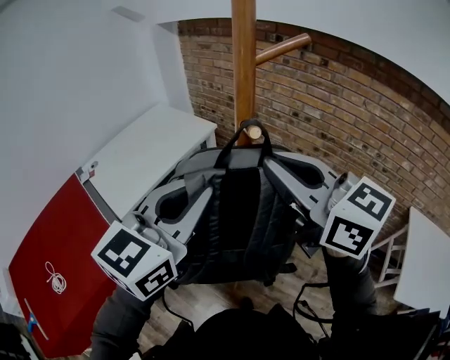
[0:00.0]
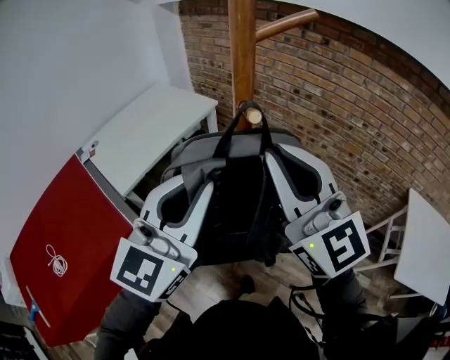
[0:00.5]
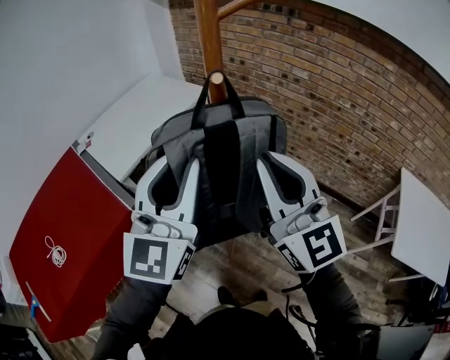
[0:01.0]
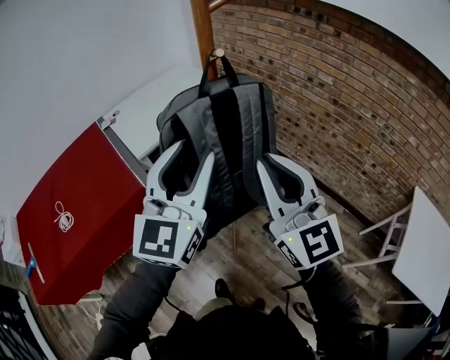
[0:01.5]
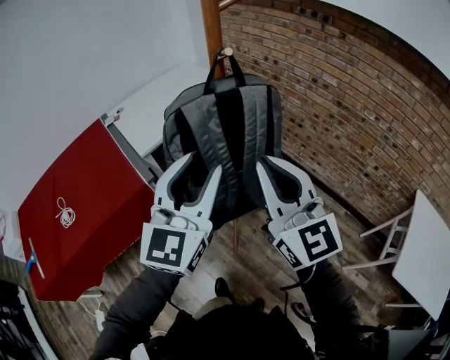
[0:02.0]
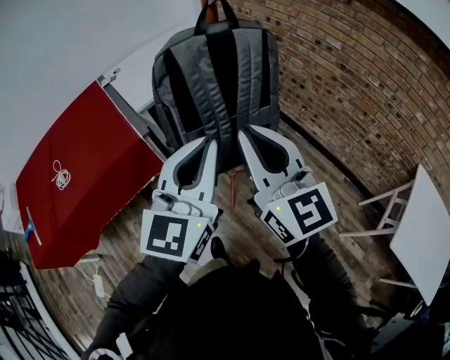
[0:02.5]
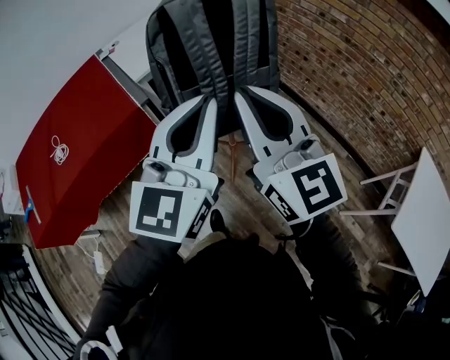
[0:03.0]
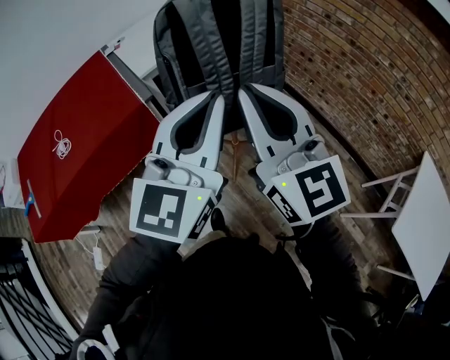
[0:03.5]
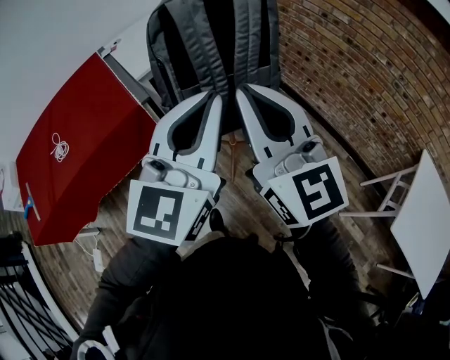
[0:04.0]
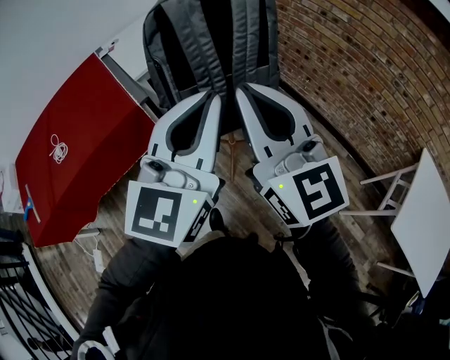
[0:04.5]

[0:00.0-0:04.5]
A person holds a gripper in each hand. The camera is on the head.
0:00.0 to 0:02.0: The left gripper shifts about 15 cm backward, changes its angle by roughly 30 degrees, and opens up. Meanwhile the right gripper moves backward and downward, some 20 cm.
0:02.0 to 0:04.5: Both grippers move backward, some 10 cm. The left gripper closes up.

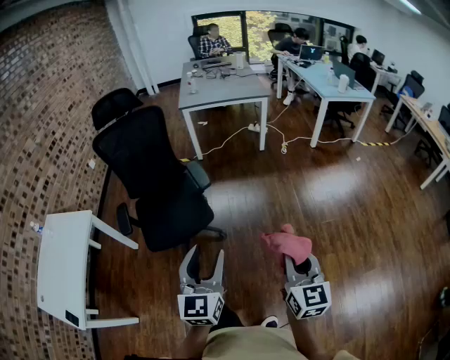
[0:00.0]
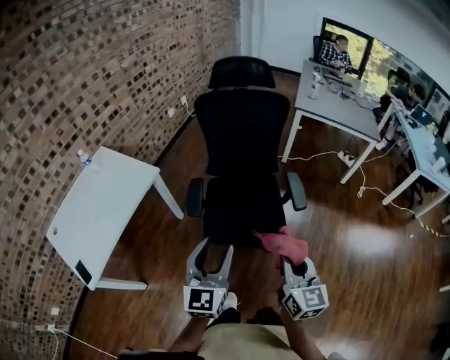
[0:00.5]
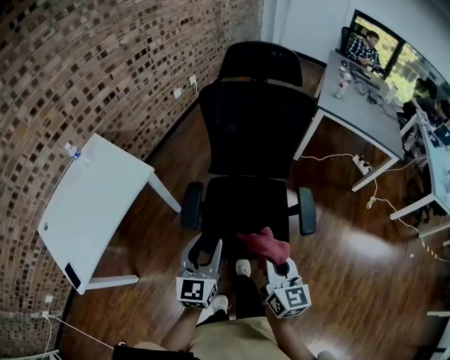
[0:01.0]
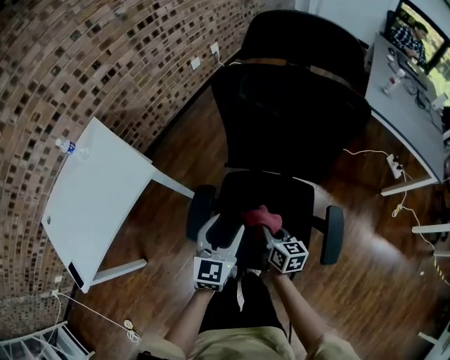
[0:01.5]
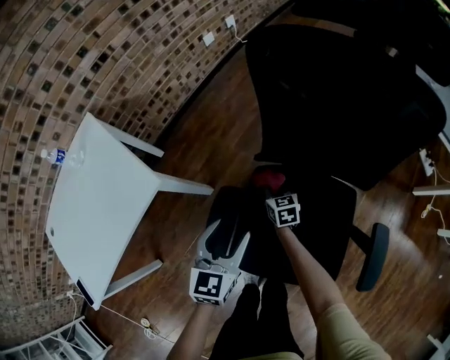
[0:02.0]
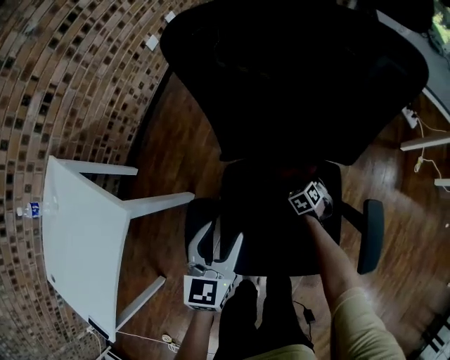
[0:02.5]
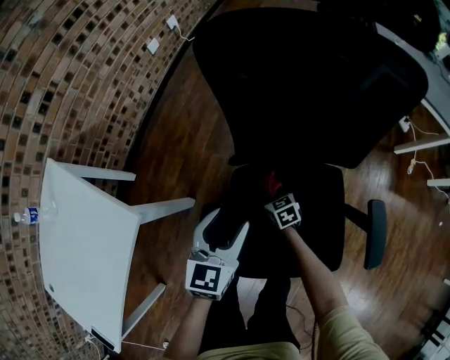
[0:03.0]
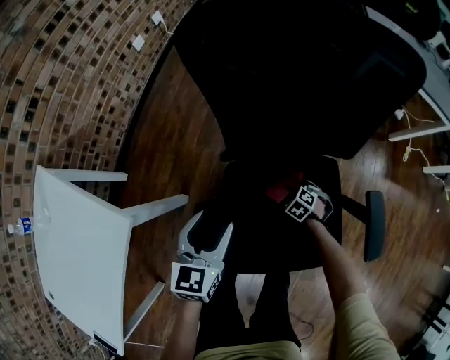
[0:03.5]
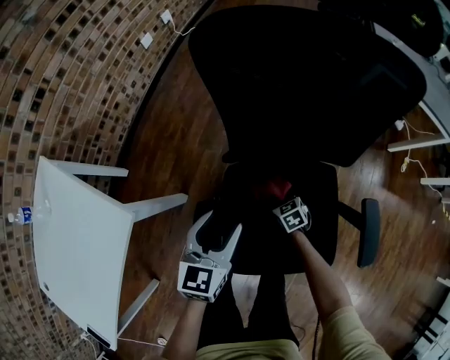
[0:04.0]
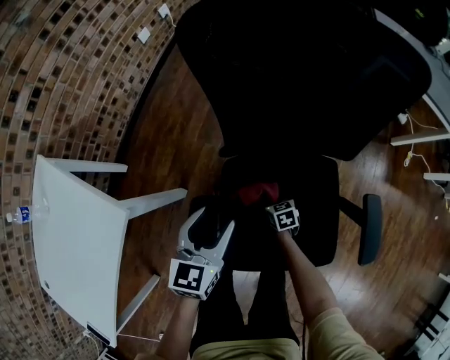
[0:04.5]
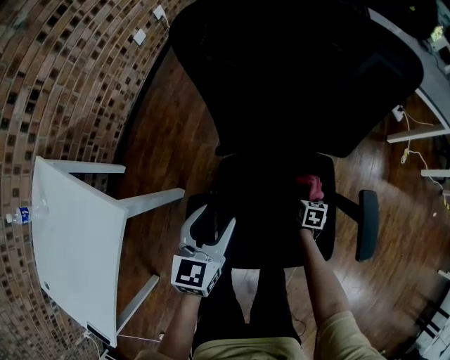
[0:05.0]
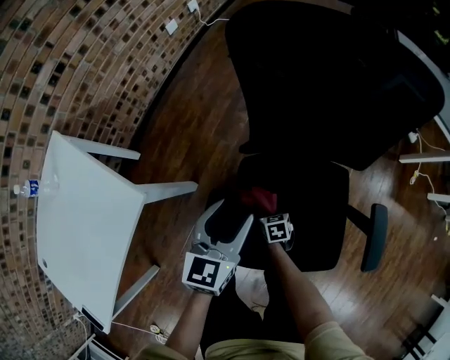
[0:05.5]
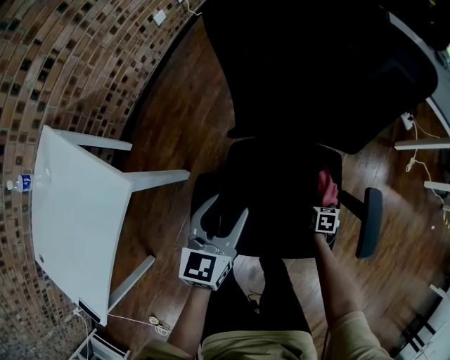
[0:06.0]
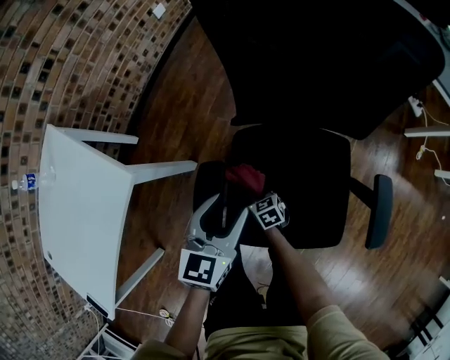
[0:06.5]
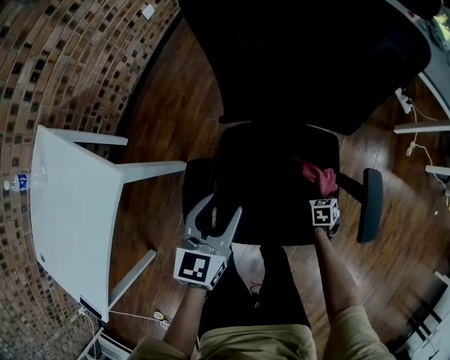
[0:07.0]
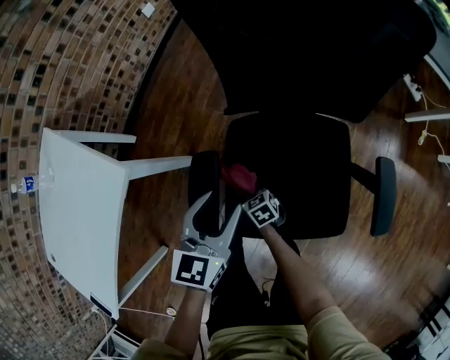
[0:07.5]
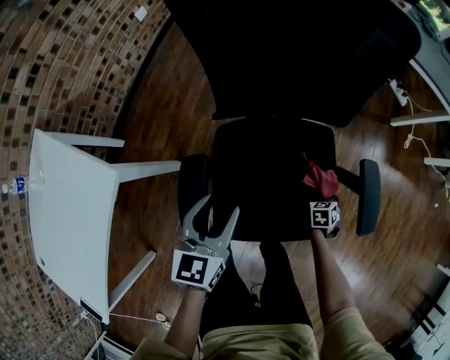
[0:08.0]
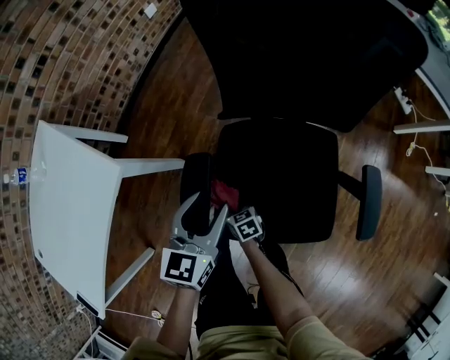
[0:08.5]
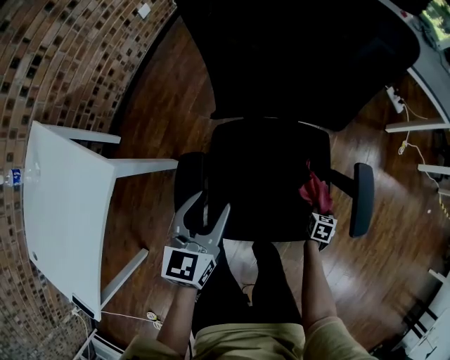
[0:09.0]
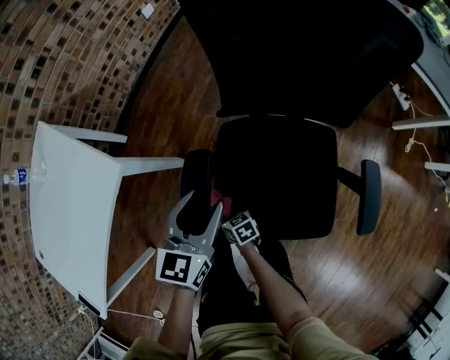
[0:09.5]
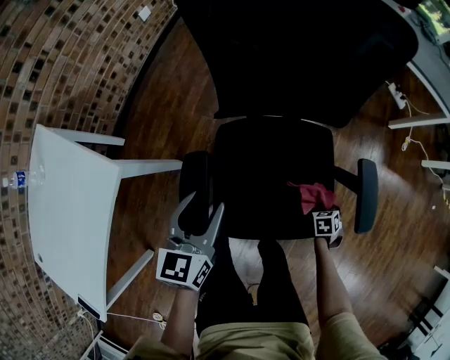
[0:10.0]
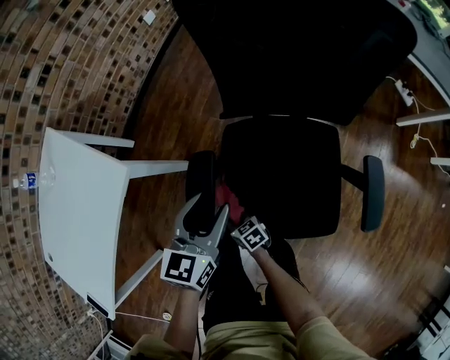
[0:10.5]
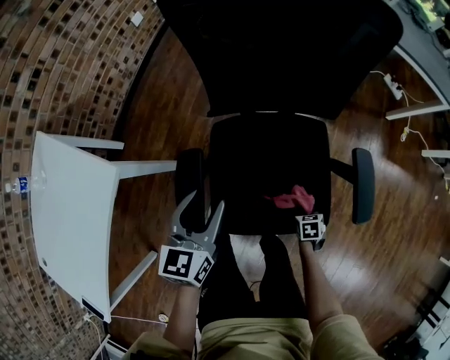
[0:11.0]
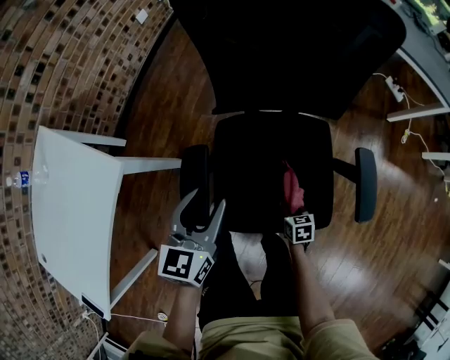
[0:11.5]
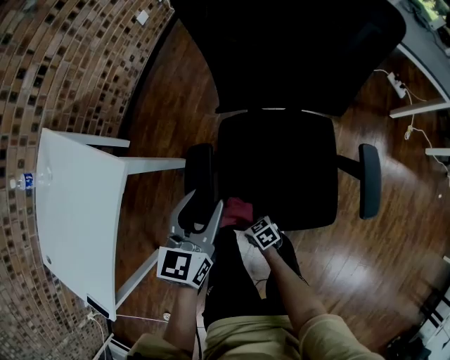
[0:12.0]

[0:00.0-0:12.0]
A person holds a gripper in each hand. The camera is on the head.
0:00.0 to 0:02.0: Both grippers are carried about 80 cm. The left gripper changes its angle by approximately 30 degrees. Meanwhile the right gripper tilts its fingers roughly 30 degrees downward.
0:02.0 to 0:04.0: The left gripper moves approximately 5 cm; the right gripper goes up and down, about 15 cm each way, reversing 3 times.
0:04.0 to 0:06.0: The right gripper shifts by some 20 cm, and rotates approximately 30 degrees.
0:06.0 to 0:08.0: The left gripper moves some 5 cm.
0:10.0 to 0:12.0: The right gripper changes place by some 35 cm, and turns by roughly 50 degrees.

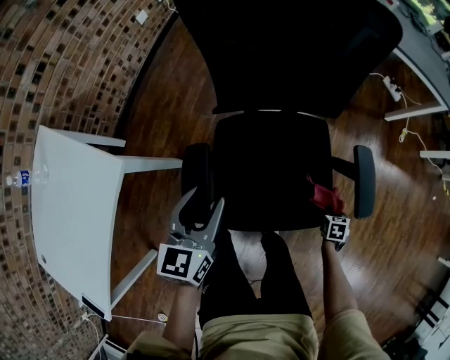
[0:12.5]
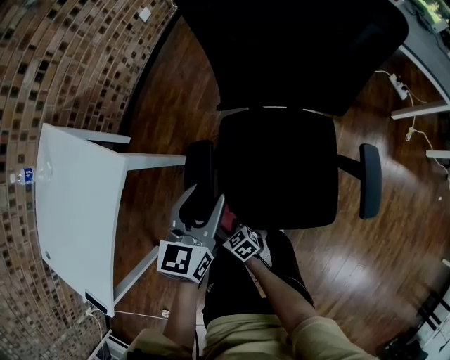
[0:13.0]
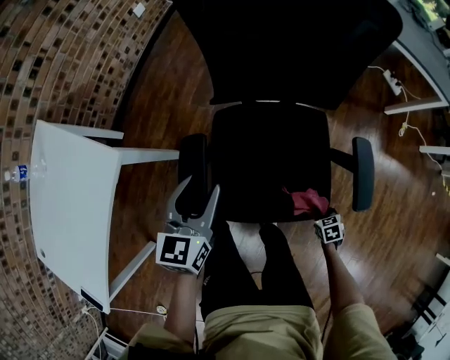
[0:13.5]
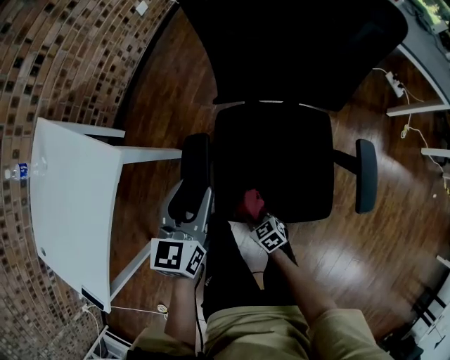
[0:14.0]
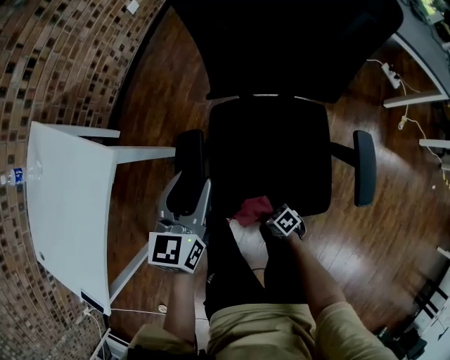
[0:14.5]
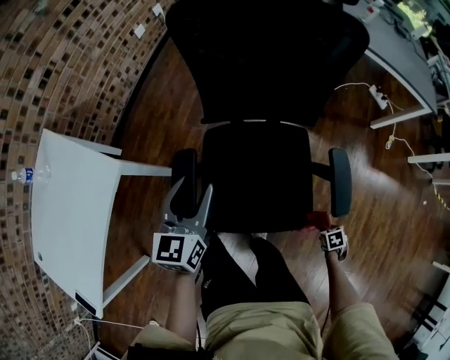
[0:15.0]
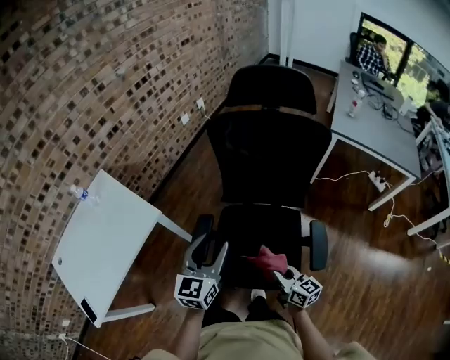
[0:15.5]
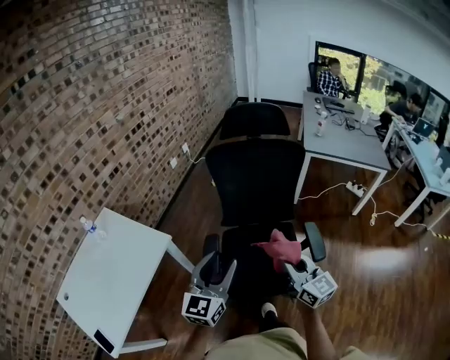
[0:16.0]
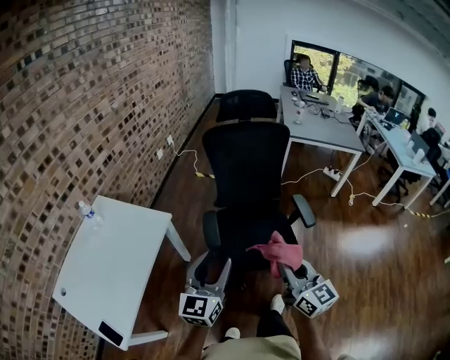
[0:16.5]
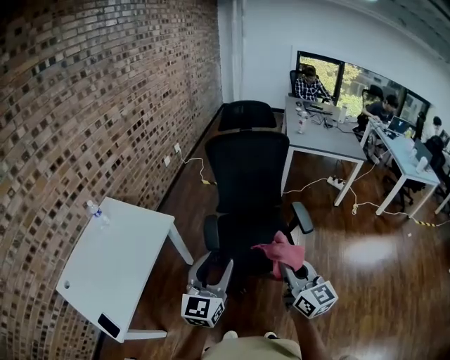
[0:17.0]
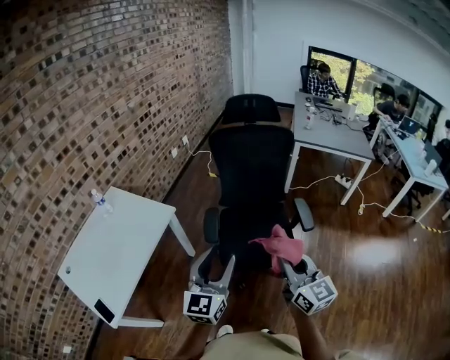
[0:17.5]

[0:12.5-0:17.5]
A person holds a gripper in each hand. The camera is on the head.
0:12.5 to 0:15.0: The right gripper turns by some 20 degrees.
0:15.0 to 0:17.5: The left gripper shifts by roughly 40 cm, and changes its angle by about 30 degrees. Meanwhile the right gripper travels upward by roughly 60 cm, and points its fingers roughly 90 degrees further upward.

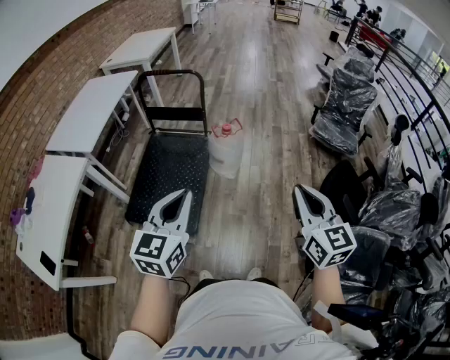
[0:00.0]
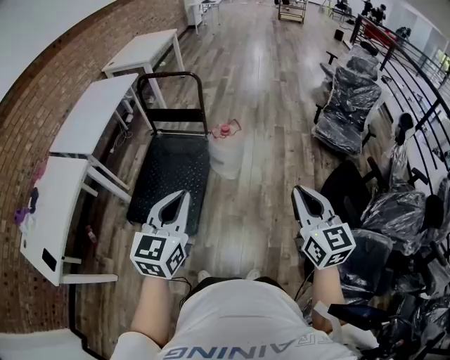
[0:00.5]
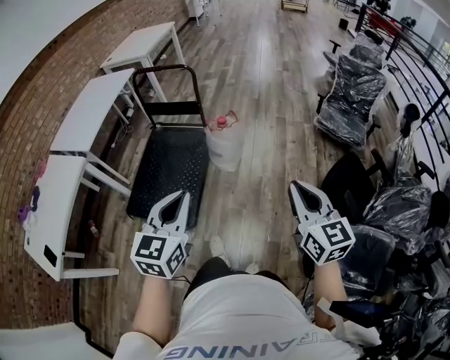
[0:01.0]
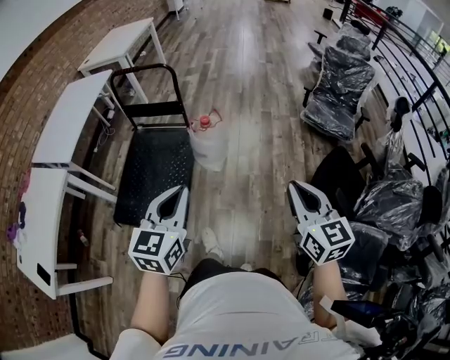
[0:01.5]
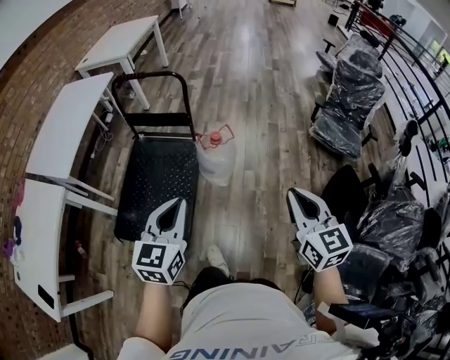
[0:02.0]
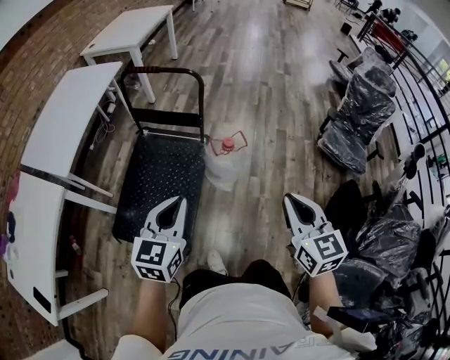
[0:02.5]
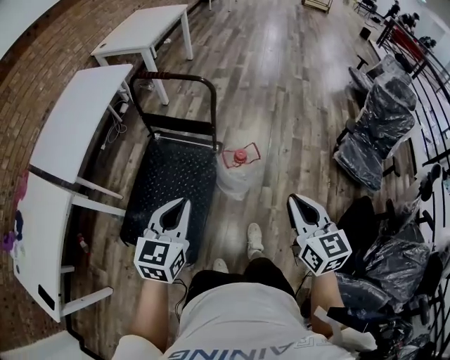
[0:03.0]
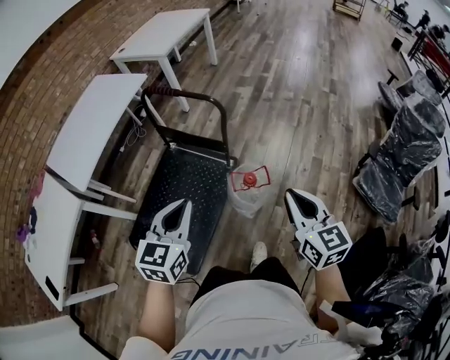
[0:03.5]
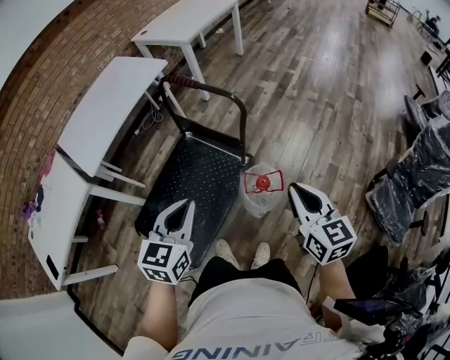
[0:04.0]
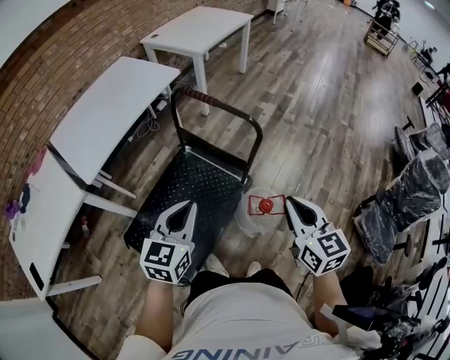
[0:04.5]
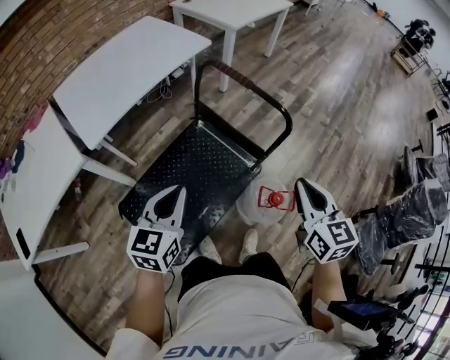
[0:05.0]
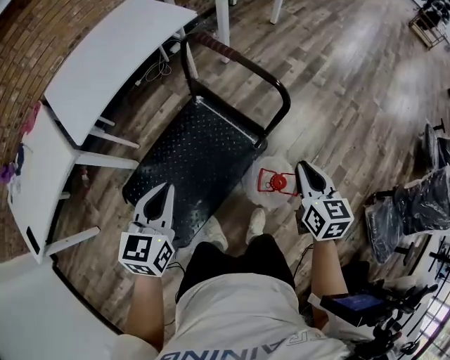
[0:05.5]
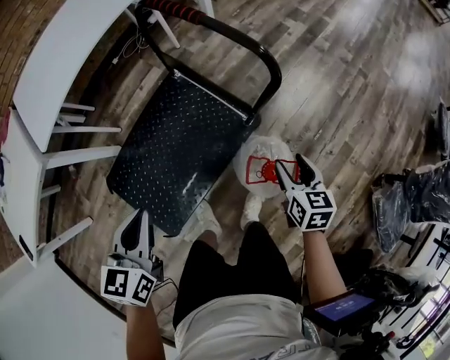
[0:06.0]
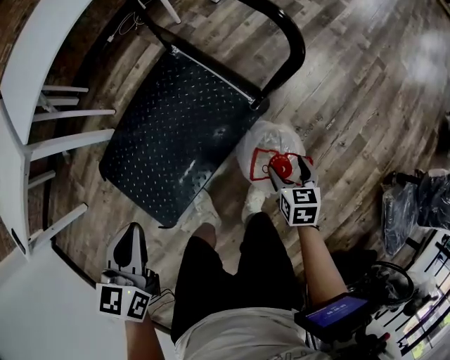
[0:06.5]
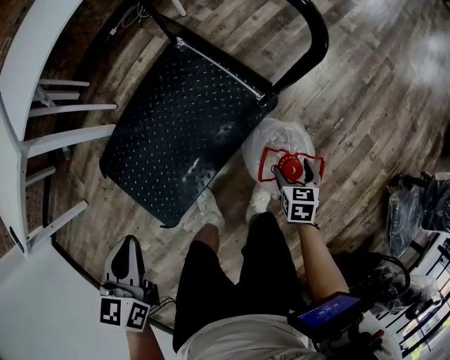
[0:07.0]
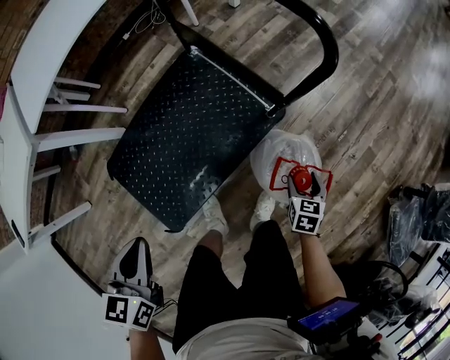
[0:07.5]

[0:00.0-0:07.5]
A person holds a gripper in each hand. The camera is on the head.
0:00.0 to 0:02.0: The two grippers go about 20 cm forward.
0:02.0 to 0:04.0: The two grippers go some 30 cm forward. The right gripper changes its angle by about 30 degrees; the left gripper changes its angle by approximately 20 degrees.
0:04.0 to 0:05.5: The left gripper shifts roughly 15 cm to the left, forward and downward. Meanwhile the right gripper is displaced forward and downward by some 20 cm.
0:05.5 to 0:07.5: The right gripper heads downward, covering roughly 40 cm, changes its angle by approximately 30 degrees, and opens its fingers, while the left gripper shifts about 20 cm downward and backward, and turns by some 20 degrees.
